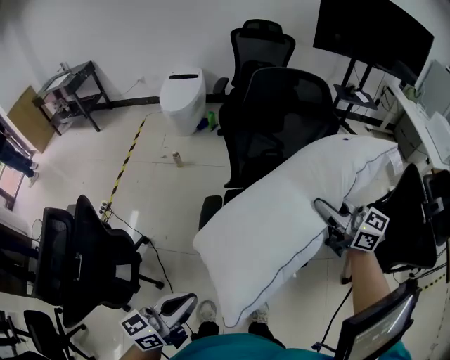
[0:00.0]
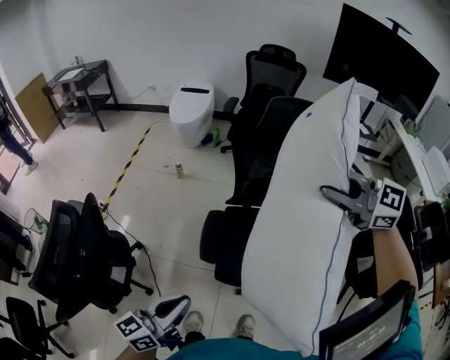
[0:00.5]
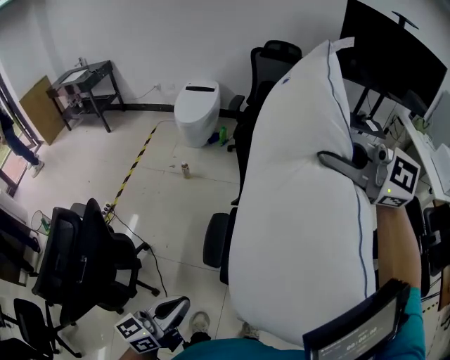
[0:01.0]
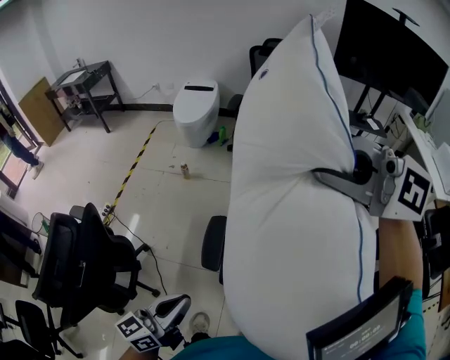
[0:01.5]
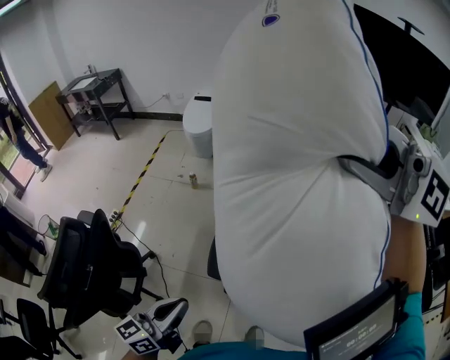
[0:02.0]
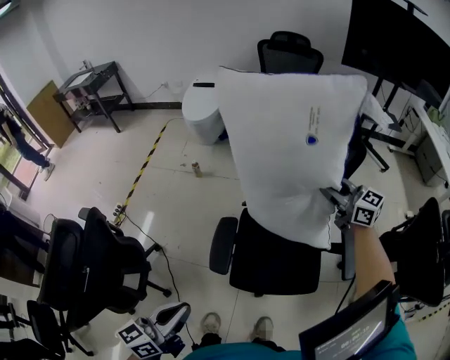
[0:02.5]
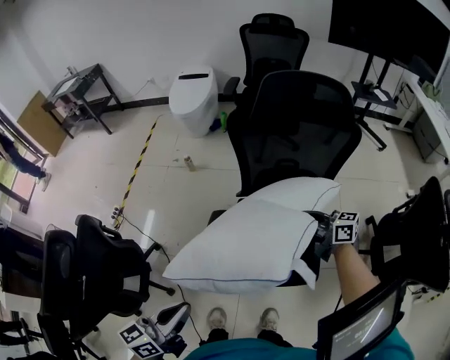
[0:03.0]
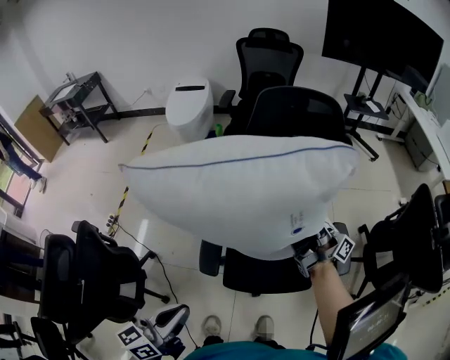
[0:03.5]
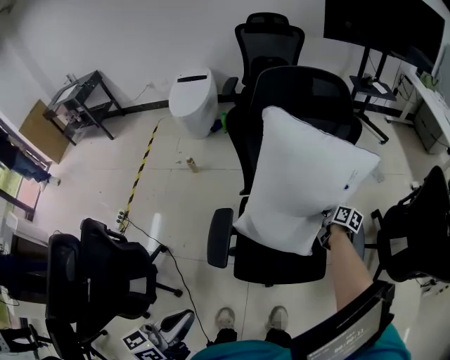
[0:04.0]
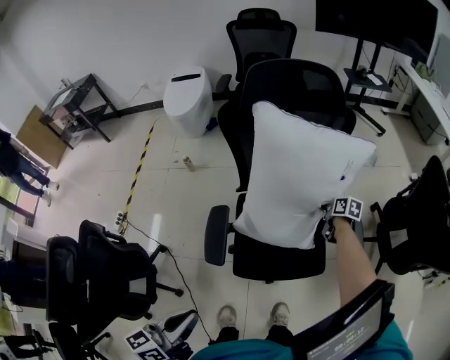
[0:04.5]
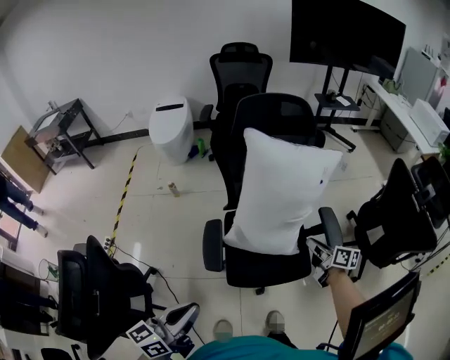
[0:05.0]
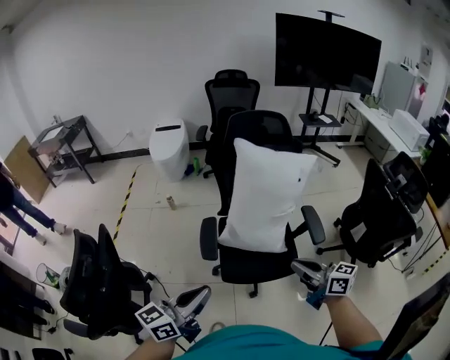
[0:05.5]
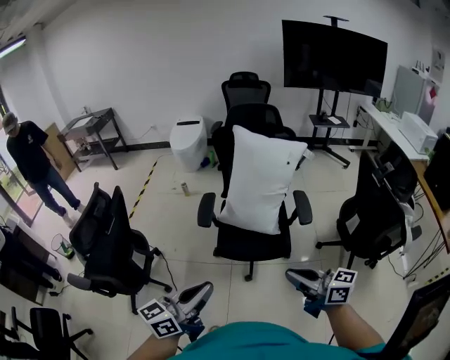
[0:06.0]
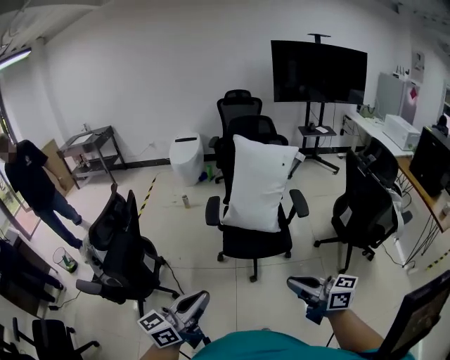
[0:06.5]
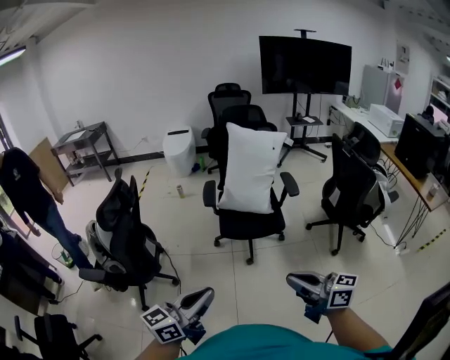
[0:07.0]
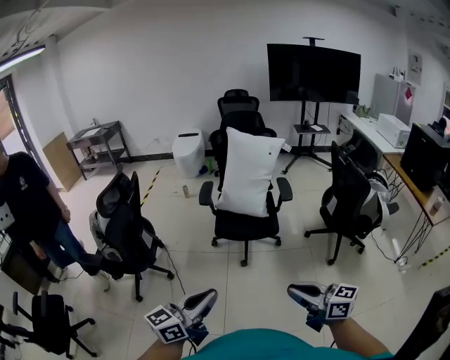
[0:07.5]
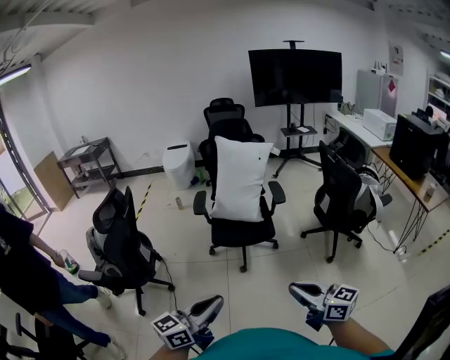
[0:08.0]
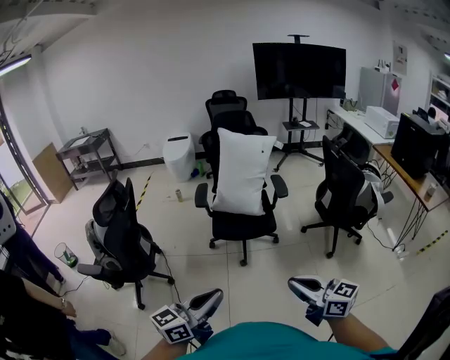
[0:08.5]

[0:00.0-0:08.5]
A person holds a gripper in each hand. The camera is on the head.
0:00.0 to 0:02.0: The left gripper goes some 5 cm forward, while the right gripper heads upward, covering approximately 30 cm, and twists some 60 degrees counterclockwise, seen from behind.
0:02.0 to 0:04.0: The right gripper moves up and down over approximately 60 cm, changing direction 2 times, and twists some 110 degrees clockwise, seen from behind. Meanwhile the left gripper shifts by approximately 5 cm.
0:04.0 to 0:06.5: The pair of grippers is taken backward, roughly 60 cm. The right gripper travels upward by approximately 35 cm, tips its fingers upward by approximately 30 degrees, and opens and closes again; the left gripper rotates about 20 degrees.
0:06.5 to 0:08.5: The left gripper shifts about 20 cm backward and to the right. Meanwhile the right gripper travels backward by approximately 20 cm.

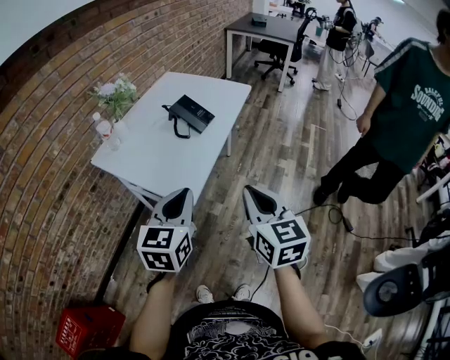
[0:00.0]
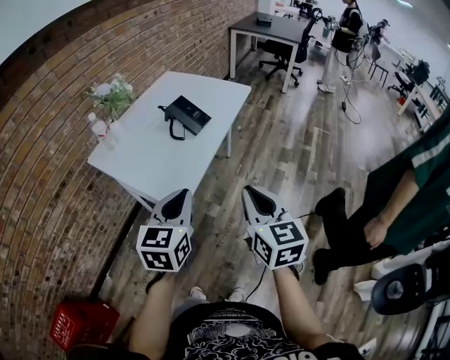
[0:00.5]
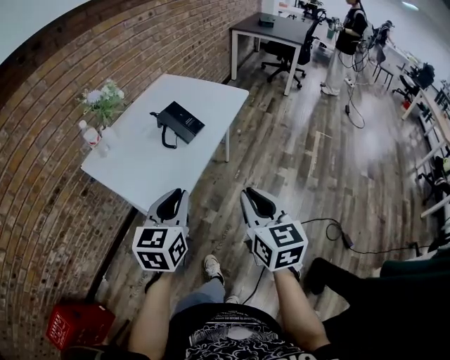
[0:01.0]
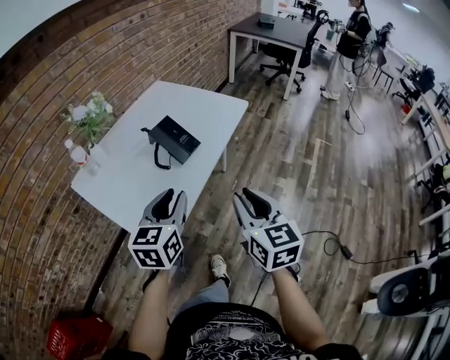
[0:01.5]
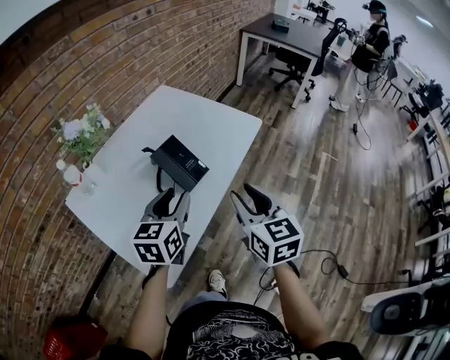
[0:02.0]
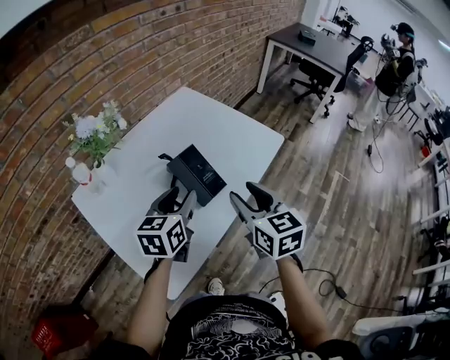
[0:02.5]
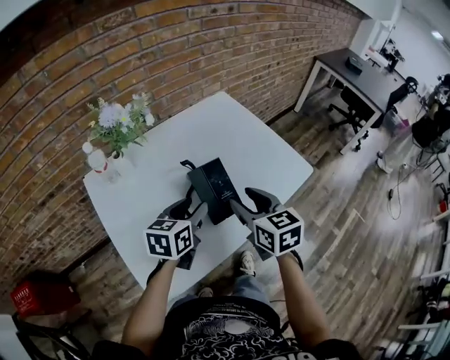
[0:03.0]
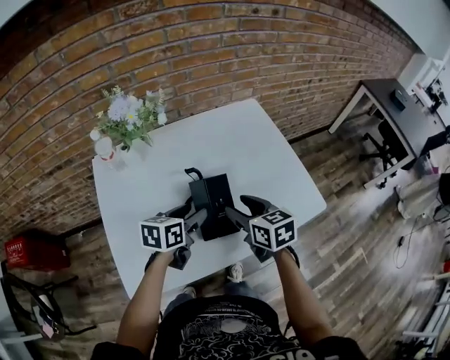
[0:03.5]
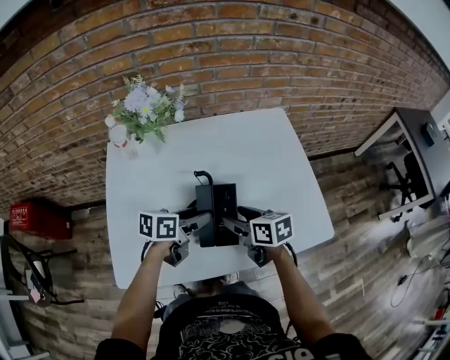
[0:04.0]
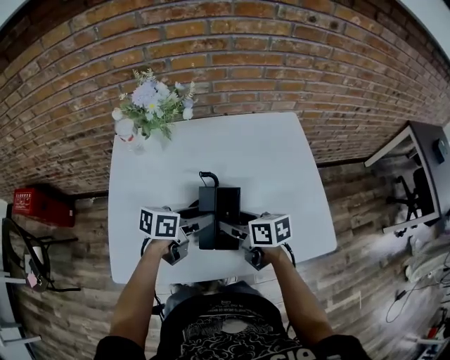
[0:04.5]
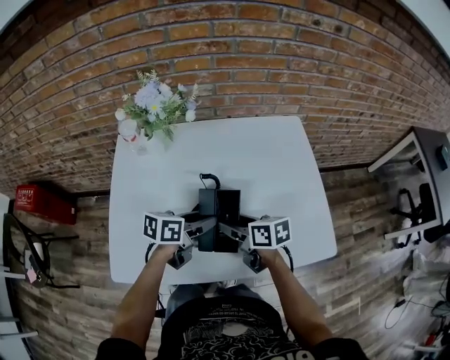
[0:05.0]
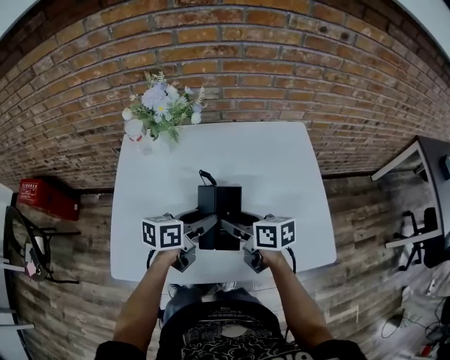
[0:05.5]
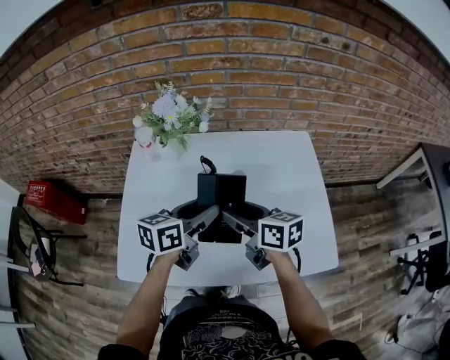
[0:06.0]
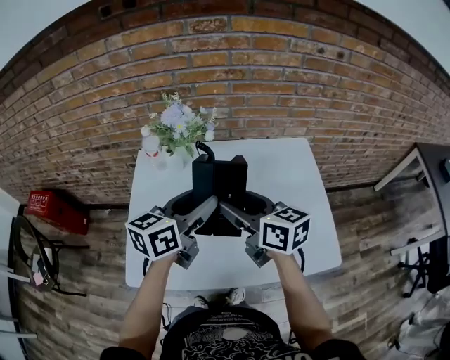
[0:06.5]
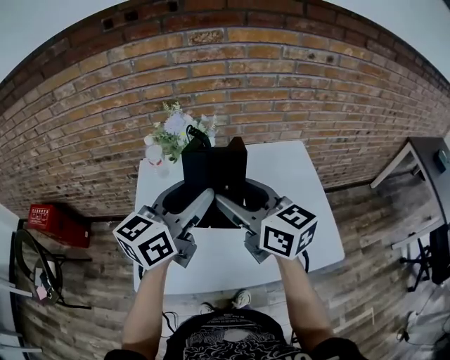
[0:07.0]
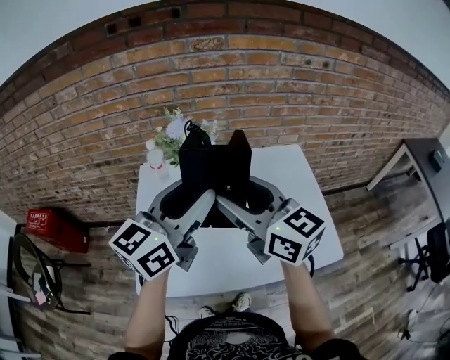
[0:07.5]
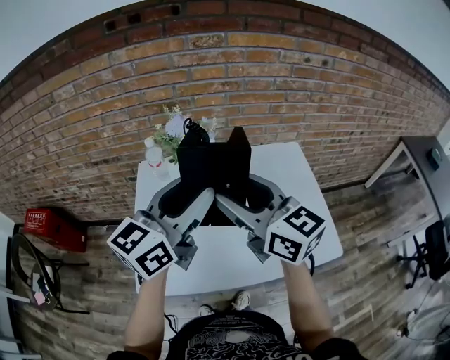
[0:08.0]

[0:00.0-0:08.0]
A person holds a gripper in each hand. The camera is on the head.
0:00.0 to 0:02.0: The two grippers go roughly 35 cm forward. The right gripper opens; the left gripper opens its fingers.
0:02.0 to 0:04.0: The right gripper shifts by approximately 30 cm, swivels roughly 70 degrees, and opens. The left gripper shifts by approximately 20 cm, and rotates around the line of its fingers by some 40 degrees, counterclockwise from behind.
0:04.0 to 0:06.0: The two grippers go approximately 10 cm upward. The left gripper rotates roughly 20 degrees.
0:06.0 to 0:08.0: The two grippers go approximately 20 cm upward. The right gripper turns by roughly 30 degrees. The left gripper swivels about 30 degrees.

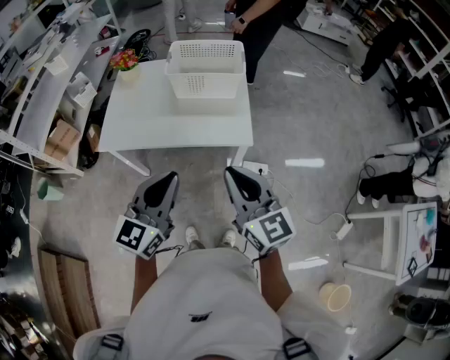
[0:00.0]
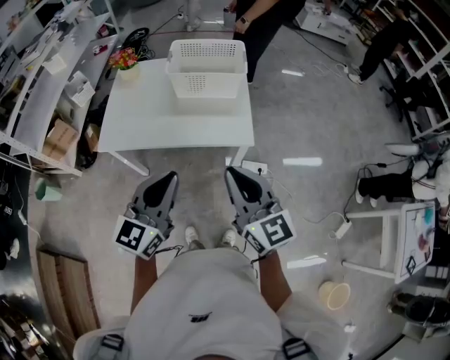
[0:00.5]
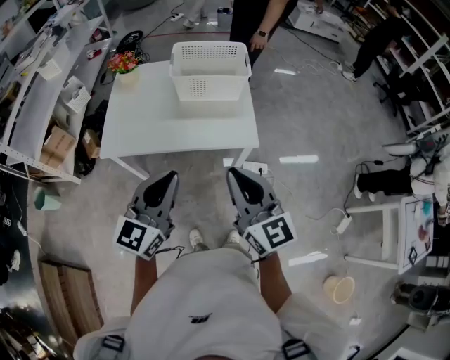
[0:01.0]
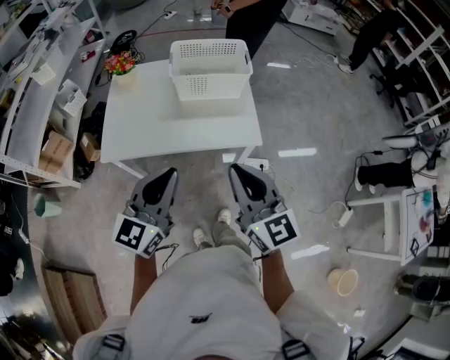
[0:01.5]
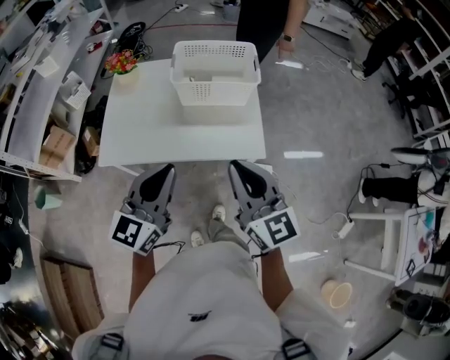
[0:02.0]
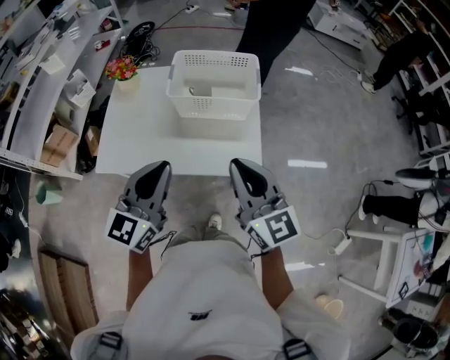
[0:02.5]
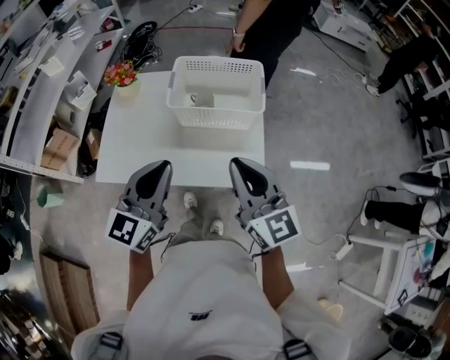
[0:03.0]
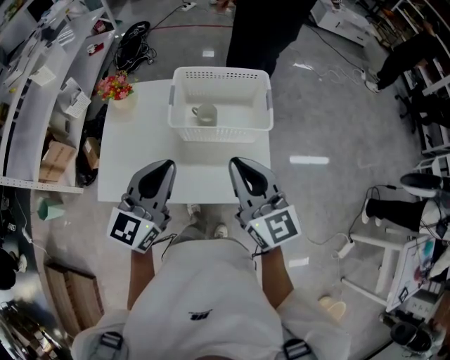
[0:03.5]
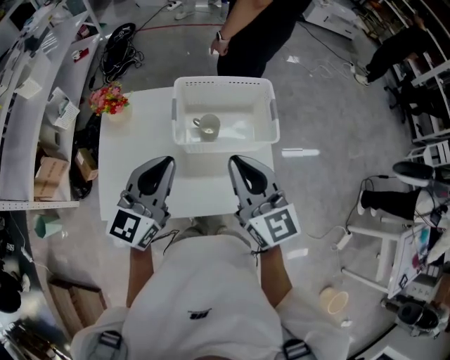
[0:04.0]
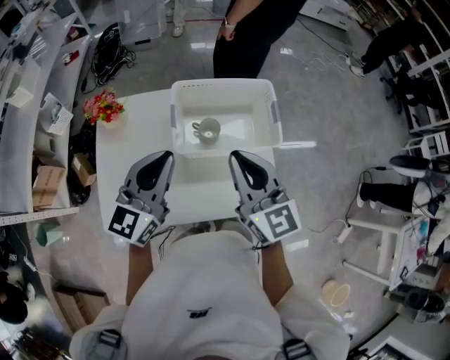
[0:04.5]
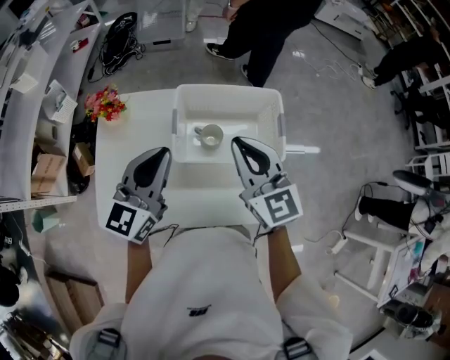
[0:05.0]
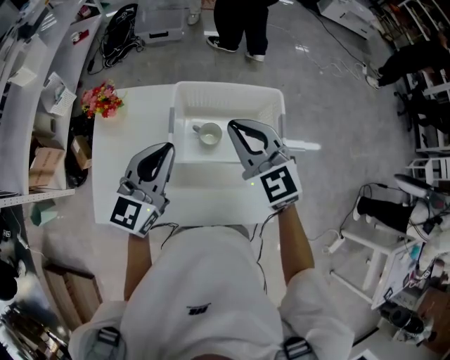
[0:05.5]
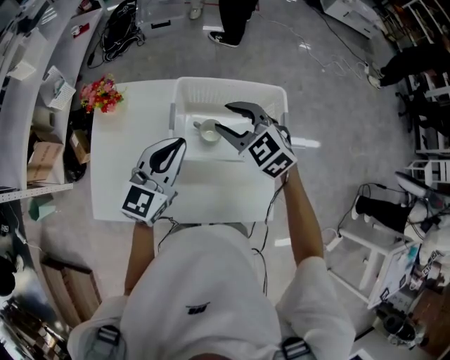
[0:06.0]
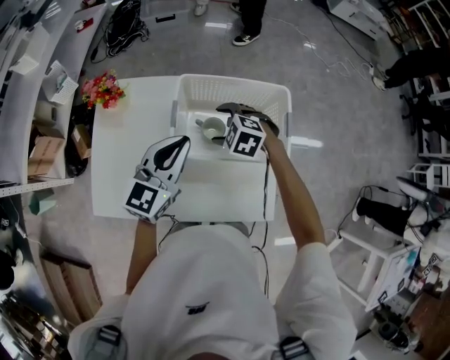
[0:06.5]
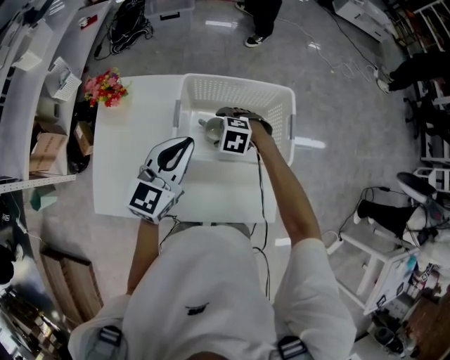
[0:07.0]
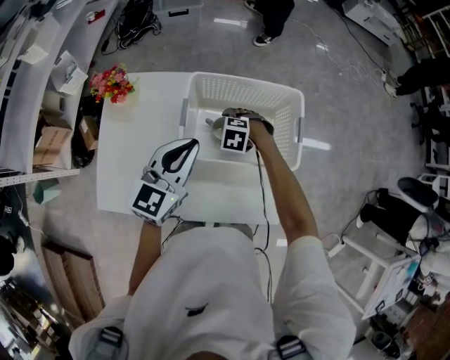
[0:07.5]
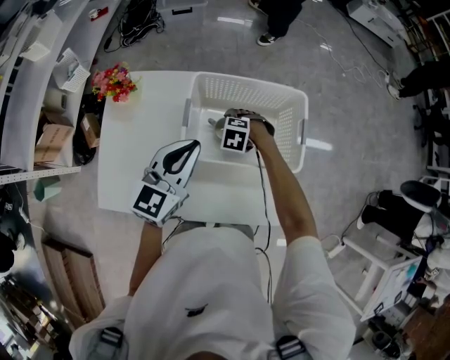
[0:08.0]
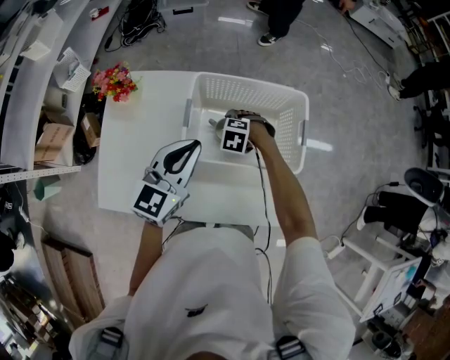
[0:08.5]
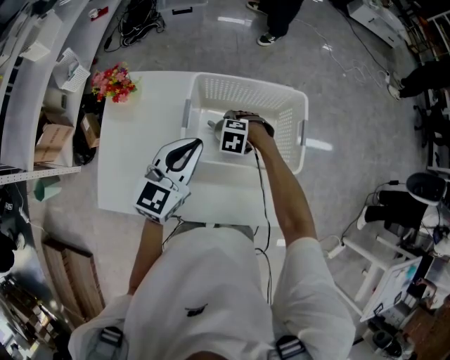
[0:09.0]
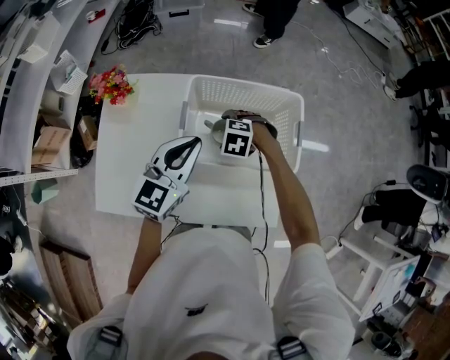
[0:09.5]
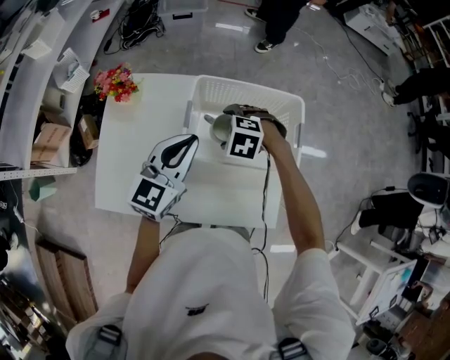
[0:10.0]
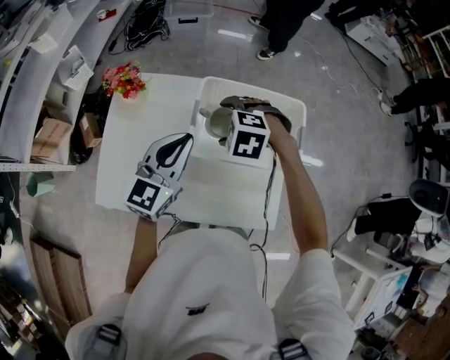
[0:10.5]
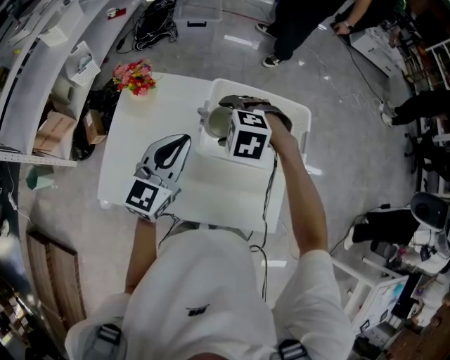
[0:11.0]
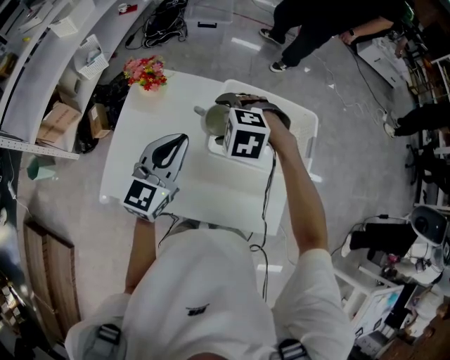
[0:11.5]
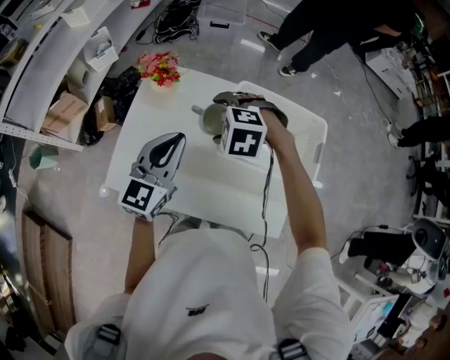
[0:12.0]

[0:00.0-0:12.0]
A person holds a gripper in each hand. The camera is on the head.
0:00.0 to 0:02.0: The grippers both shift forward and to the left by about 15 cm.
0:02.0 to 0:04.0: The grippers both shift forward by roughly 30 cm.
0:04.0 to 0:06.0: The right gripper goes about 25 cm forward and downward, tilts its fingers roughly 30 degrees downward, and opens its fingers, while the left gripper heads forward and downward, covering roughly 15 cm.
0:06.0 to 0:08.0: The right gripper goes about 25 cm downward, tilts its fingers about 40 degrees downward, and opens its fingers.
0:08.0 to 0:10.0: The right gripper heads upward, covering about 10 cm.
0:10.0 to 0:12.0: The right gripper moves to the left and upward, some 20 cm, while the left gripper goes about 15 cm to the left.
